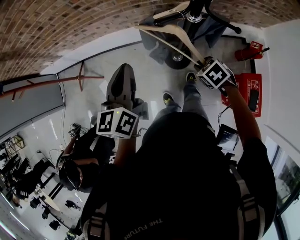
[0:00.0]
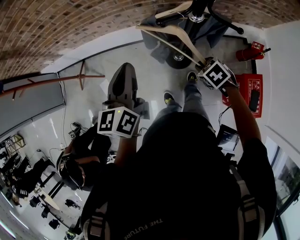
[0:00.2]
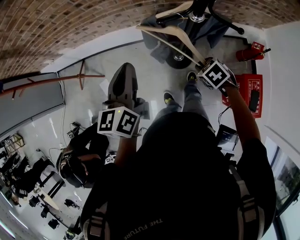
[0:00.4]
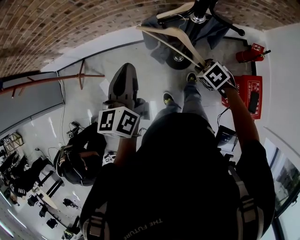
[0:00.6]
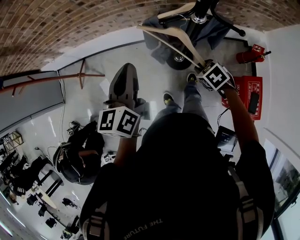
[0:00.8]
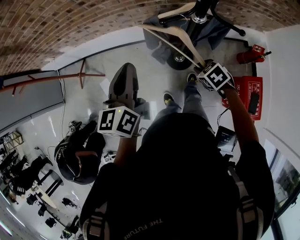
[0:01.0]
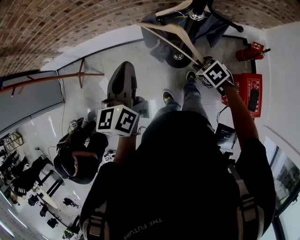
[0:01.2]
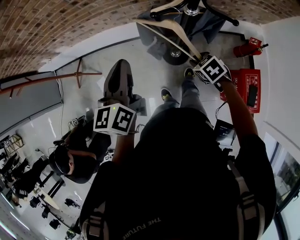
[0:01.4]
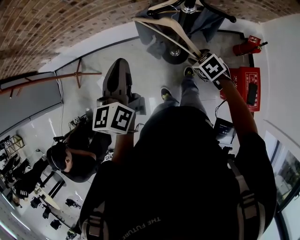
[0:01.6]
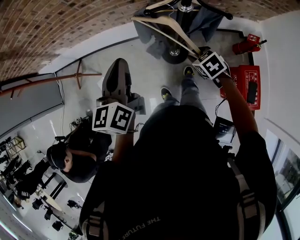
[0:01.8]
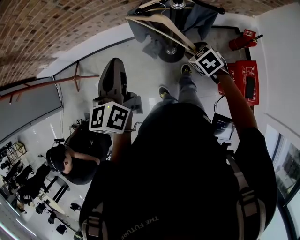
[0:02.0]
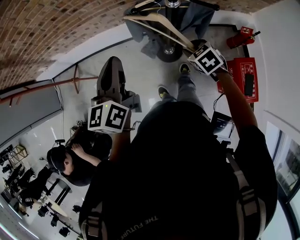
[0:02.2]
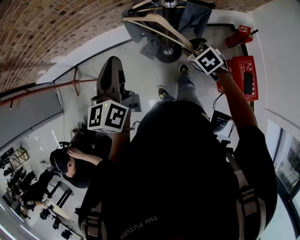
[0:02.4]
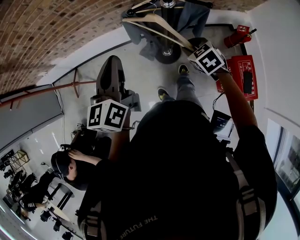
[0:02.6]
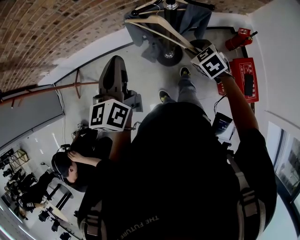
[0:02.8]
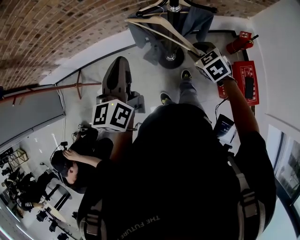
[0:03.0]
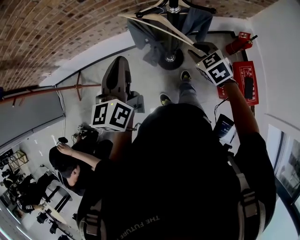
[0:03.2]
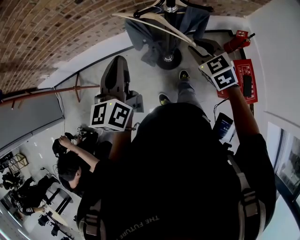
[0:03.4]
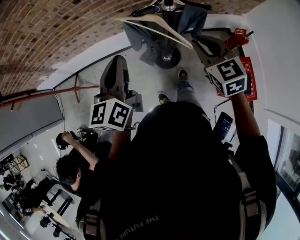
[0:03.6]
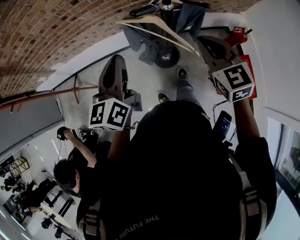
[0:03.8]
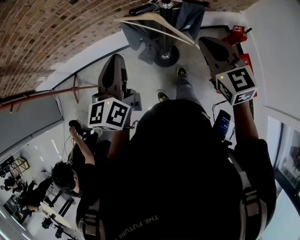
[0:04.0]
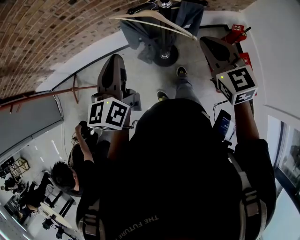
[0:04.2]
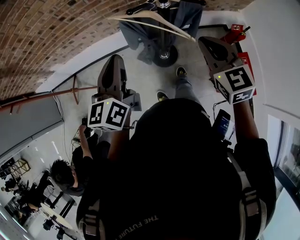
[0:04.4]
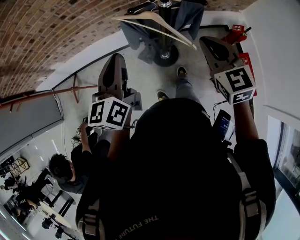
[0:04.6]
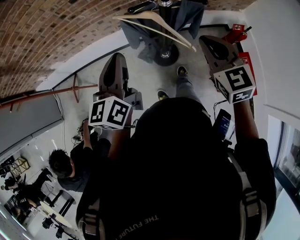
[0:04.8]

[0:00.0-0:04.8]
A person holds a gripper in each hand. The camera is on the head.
0:00.0 to 0:01.6: The grippers stay close to where they were, moving slightly.
0:01.6 to 0:03.2: The right gripper moves upward, about 10 cm, and swivels roughly 20 degrees.
0:03.2 to 0:04.8: The right gripper heads upward, covering about 15 cm, rotates some 30 degrees, and closes its fingers.

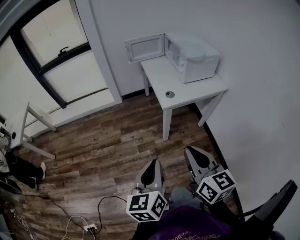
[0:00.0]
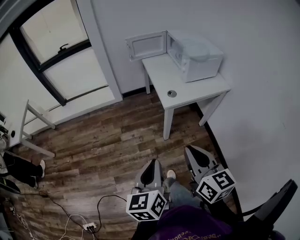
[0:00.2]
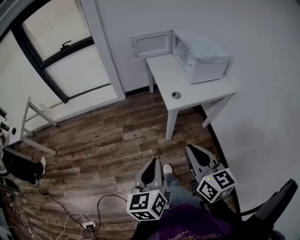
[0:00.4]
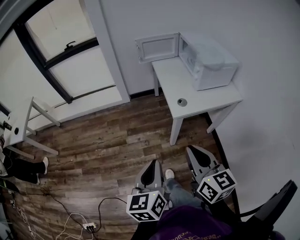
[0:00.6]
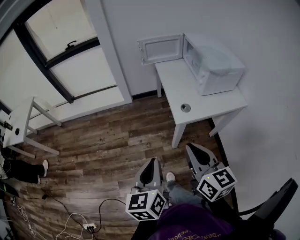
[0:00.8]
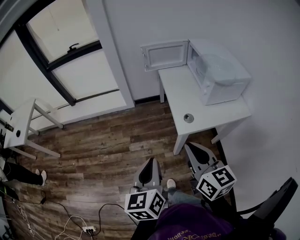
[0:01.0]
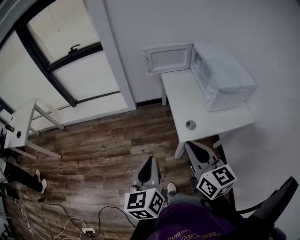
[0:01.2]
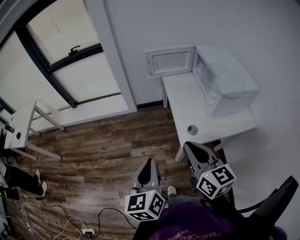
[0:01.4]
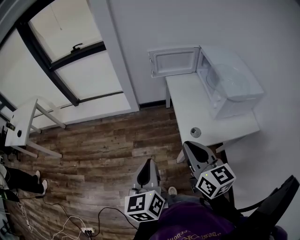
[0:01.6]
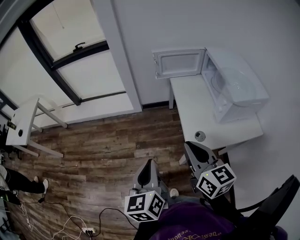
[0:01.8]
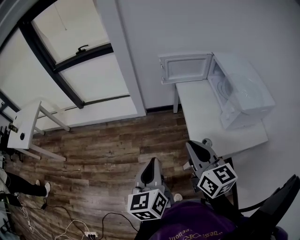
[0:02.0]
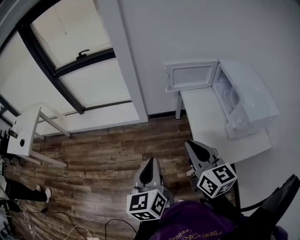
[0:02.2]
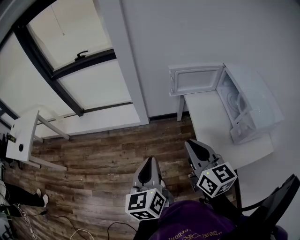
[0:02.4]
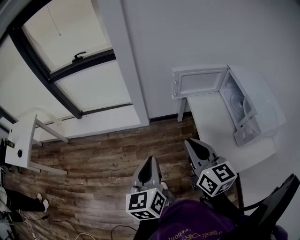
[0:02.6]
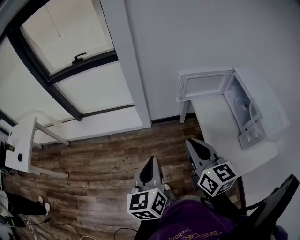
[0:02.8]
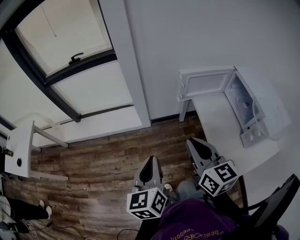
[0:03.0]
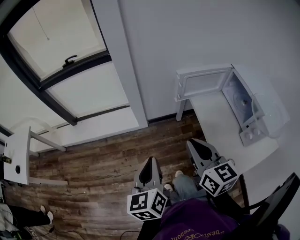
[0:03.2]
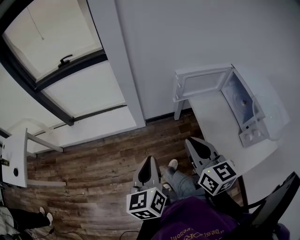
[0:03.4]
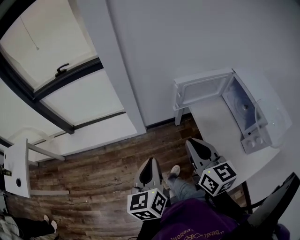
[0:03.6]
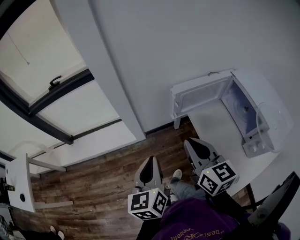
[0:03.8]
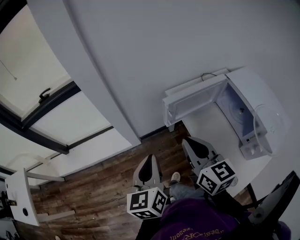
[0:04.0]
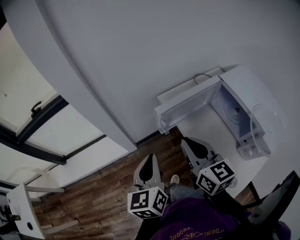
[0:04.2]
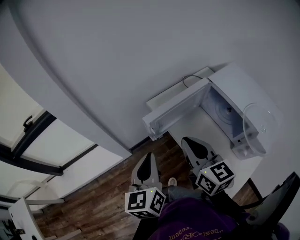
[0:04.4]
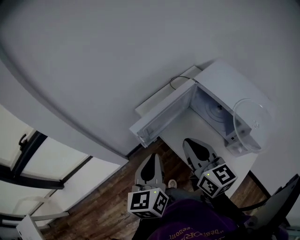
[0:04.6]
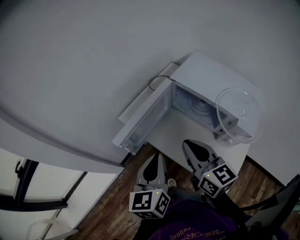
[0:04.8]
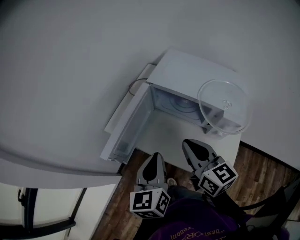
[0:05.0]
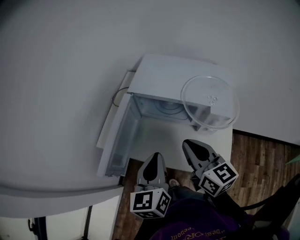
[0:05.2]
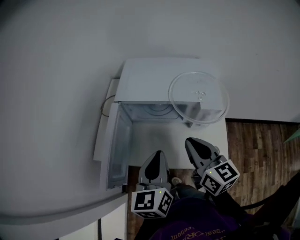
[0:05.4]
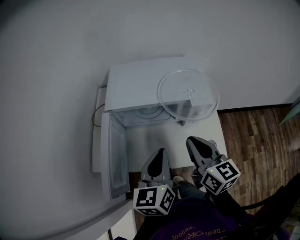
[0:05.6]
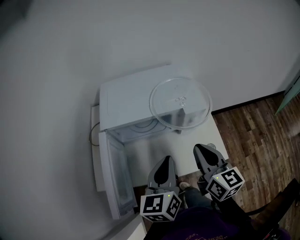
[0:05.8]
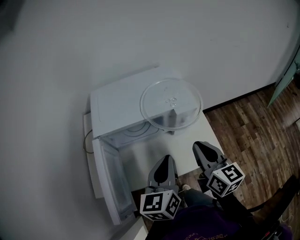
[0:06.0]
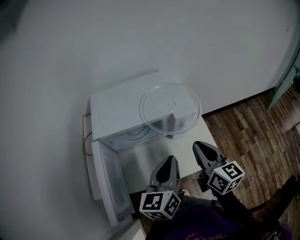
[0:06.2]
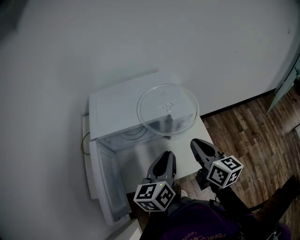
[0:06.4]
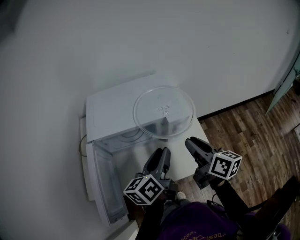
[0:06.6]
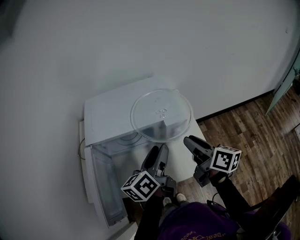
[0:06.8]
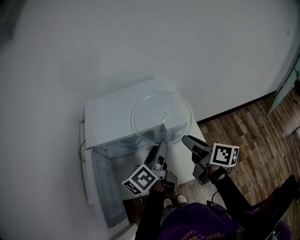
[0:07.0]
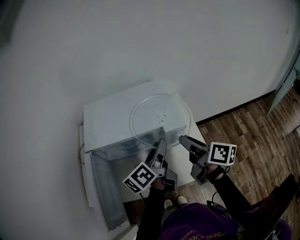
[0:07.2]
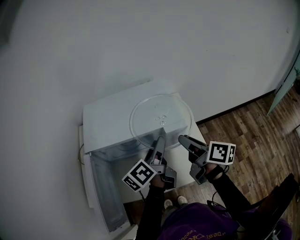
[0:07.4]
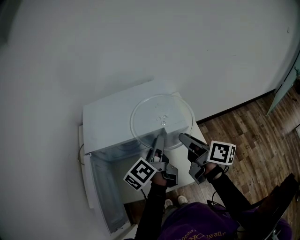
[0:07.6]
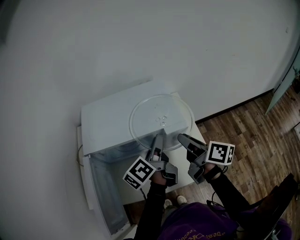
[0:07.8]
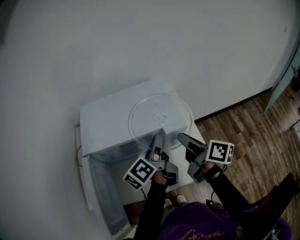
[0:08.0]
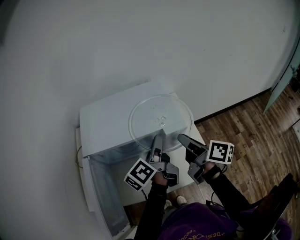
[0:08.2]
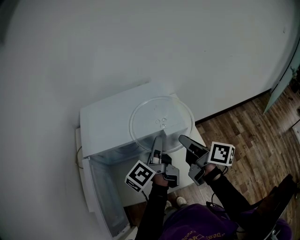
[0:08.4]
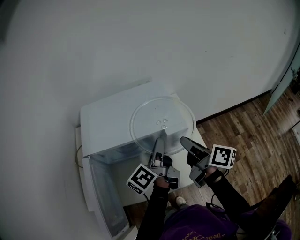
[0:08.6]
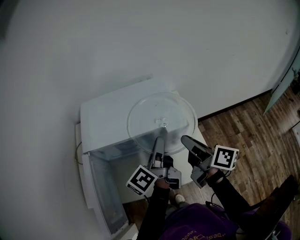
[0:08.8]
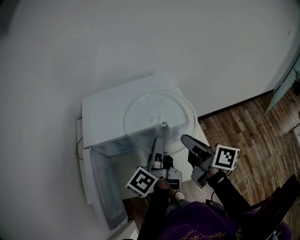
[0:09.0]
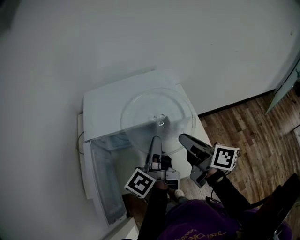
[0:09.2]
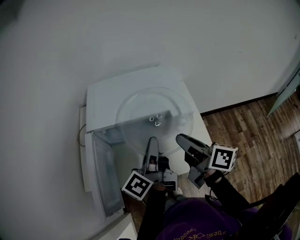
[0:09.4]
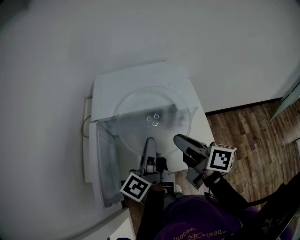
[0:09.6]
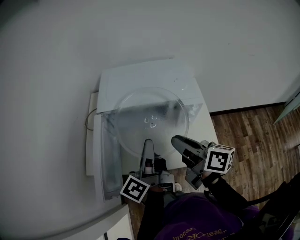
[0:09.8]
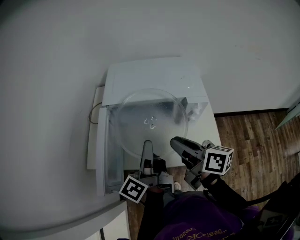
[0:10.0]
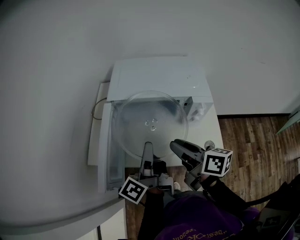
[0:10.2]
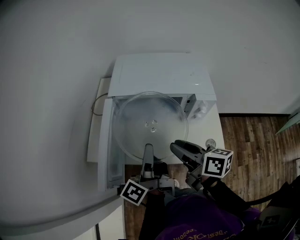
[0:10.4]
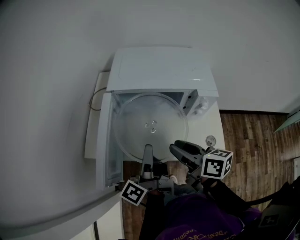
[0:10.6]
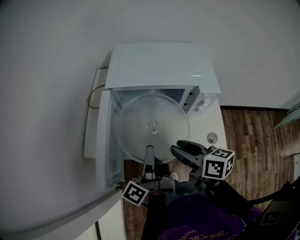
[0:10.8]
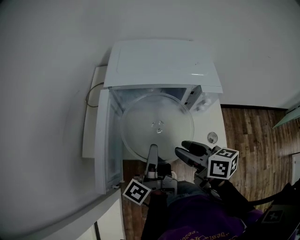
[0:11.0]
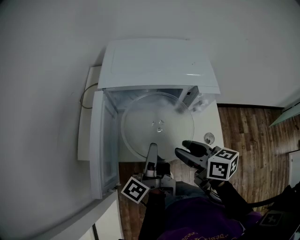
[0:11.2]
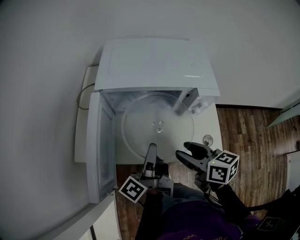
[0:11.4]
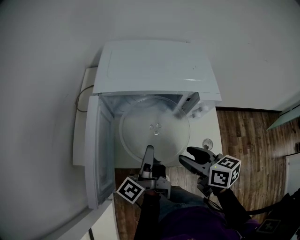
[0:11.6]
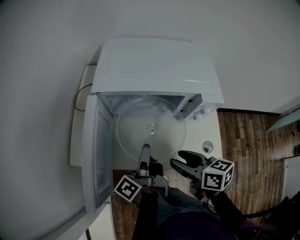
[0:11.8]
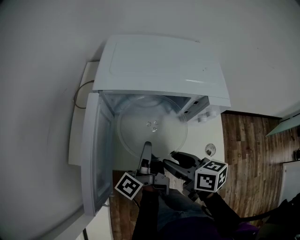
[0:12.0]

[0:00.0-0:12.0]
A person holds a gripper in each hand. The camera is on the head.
0:00.0 to 0:01.6: The two grippers go approximately 30 cm forward.
0:01.6 to 0:03.0: Both grippers move forward and to the left, approximately 30 cm.
0:03.0 to 0:04.4: The two grippers go about 25 cm forward and to the right. The right gripper rotates about 20 degrees; the left gripper turns by approximately 20 degrees.
0:04.4 to 0:06.0: The right gripper shifts by some 25 cm, and swivels approximately 80 degrees. The left gripper changes place by some 30 cm, and changes its angle by approximately 80 degrees.
0:06.0 to 0:07.6: The grippers both shift forward by approximately 15 cm. The right gripper rotates roughly 40 degrees, and opens its fingers, while the left gripper rolls counterclockwise, seen from behind, by about 40 degrees, and opens.
0:07.6 to 0:09.0: The left gripper closes its fingers.
0:09.0 to 0:10.4: The two grippers go some 20 cm to the left and backward. The left gripper turns by approximately 20 degrees, while the right gripper turns by some 30 degrees.
0:10.4 to 0:12.0: The right gripper goes some 10 cm downward, while the left gripper shifts approximately 15 cm downward and forward.

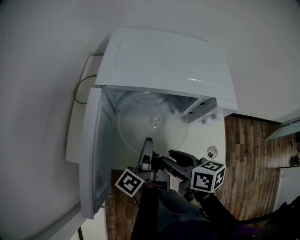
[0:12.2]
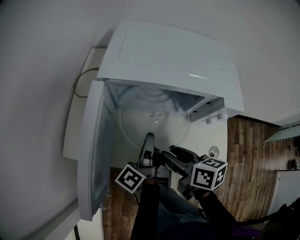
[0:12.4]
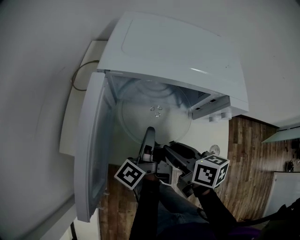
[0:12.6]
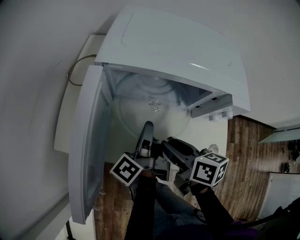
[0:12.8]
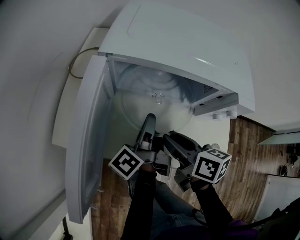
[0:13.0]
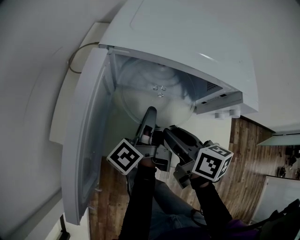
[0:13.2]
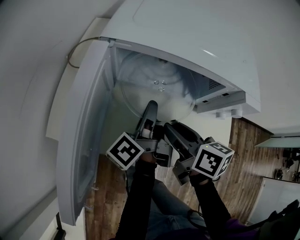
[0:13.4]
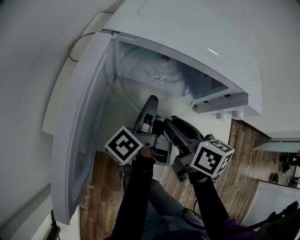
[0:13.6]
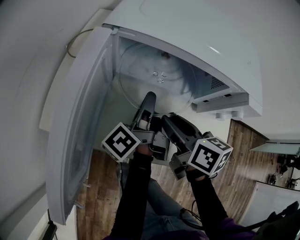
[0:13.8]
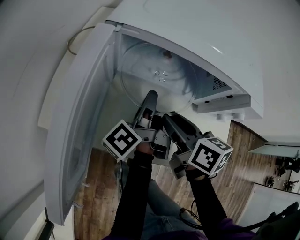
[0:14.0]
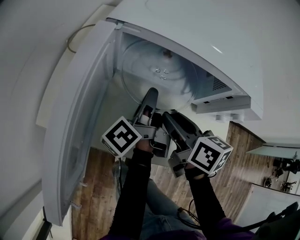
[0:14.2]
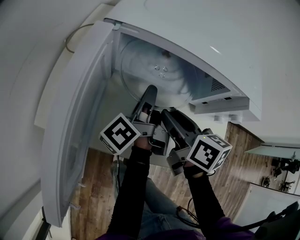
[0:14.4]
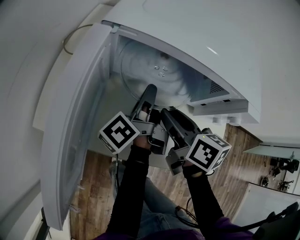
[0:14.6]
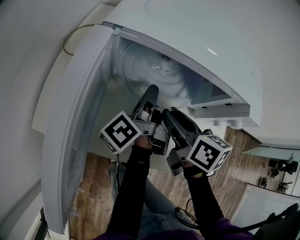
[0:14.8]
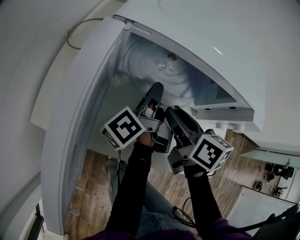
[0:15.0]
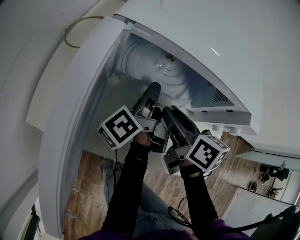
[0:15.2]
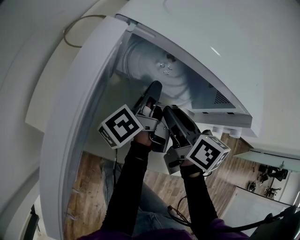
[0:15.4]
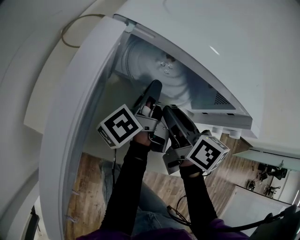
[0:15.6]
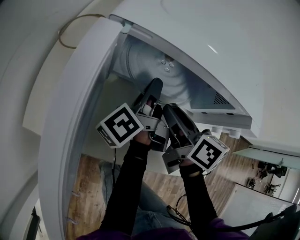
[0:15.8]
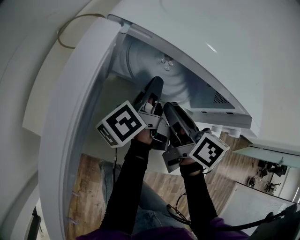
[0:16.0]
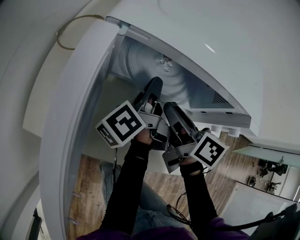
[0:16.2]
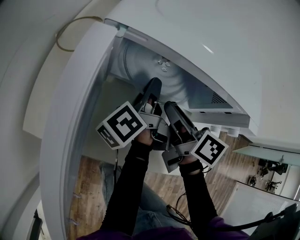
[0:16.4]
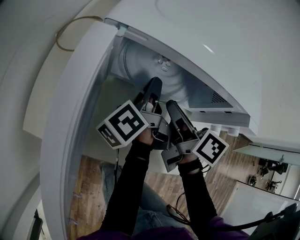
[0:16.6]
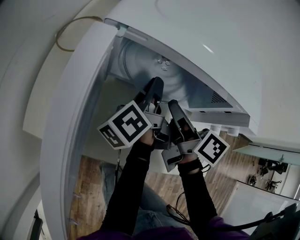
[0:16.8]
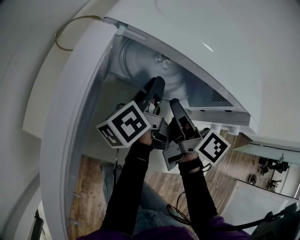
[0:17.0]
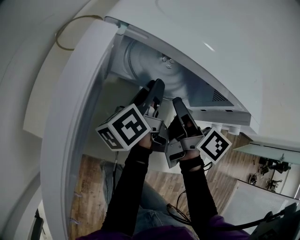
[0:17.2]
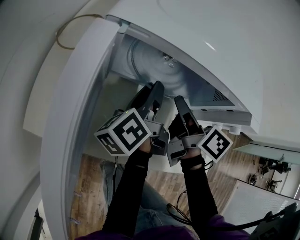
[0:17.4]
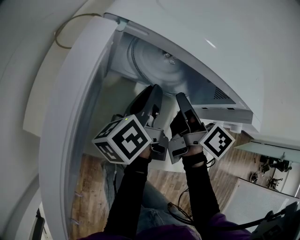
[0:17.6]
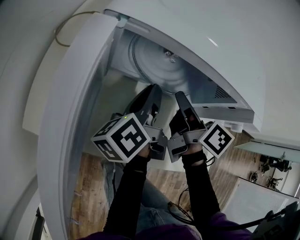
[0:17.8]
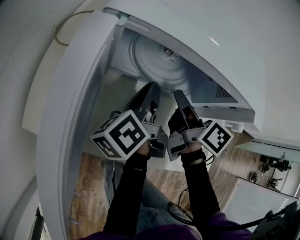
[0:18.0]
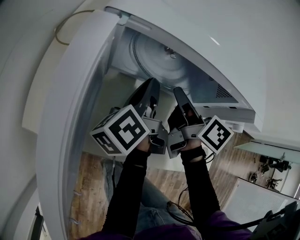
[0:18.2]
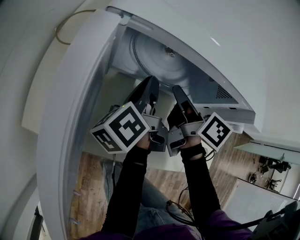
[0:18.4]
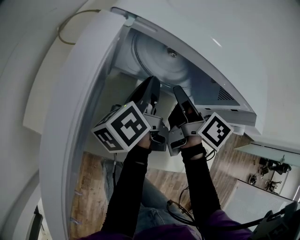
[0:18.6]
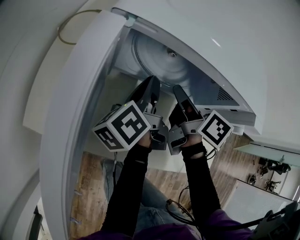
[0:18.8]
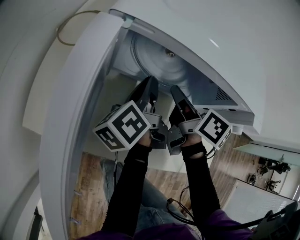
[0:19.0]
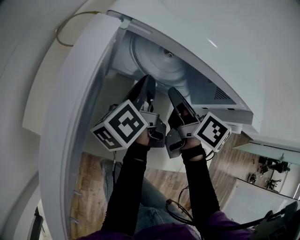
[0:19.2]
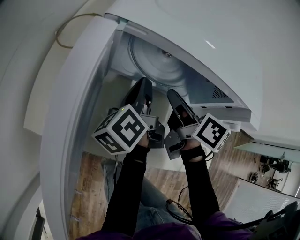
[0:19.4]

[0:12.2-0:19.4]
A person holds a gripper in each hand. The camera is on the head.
0:12.2 to 0:13.6: The grippers both shift forward by roughly 5 cm.
0:13.6 to 0:15.0: There are only small adjustments of the grippers.
0:15.0 to 0:16.6: The grippers move only a little.
0:16.6 to 0:19.4: There are only small adjustments of the grippers.
